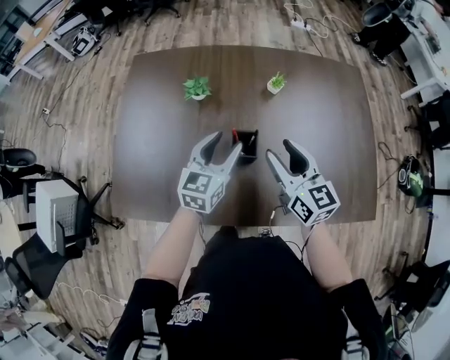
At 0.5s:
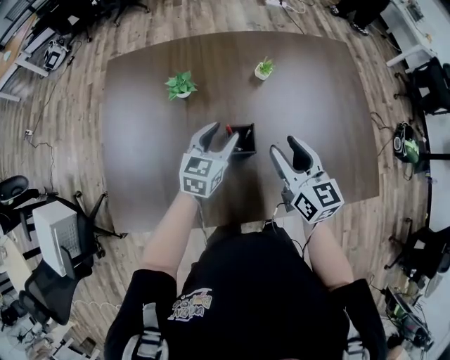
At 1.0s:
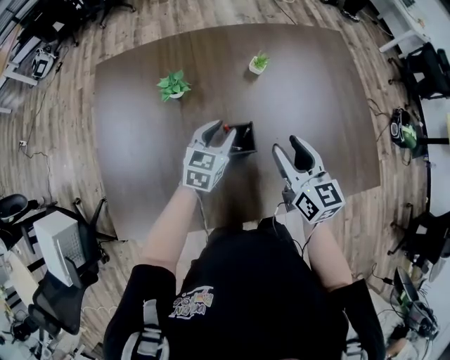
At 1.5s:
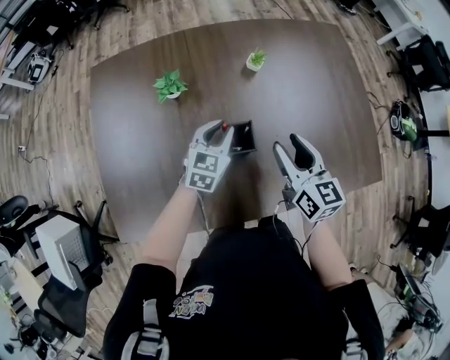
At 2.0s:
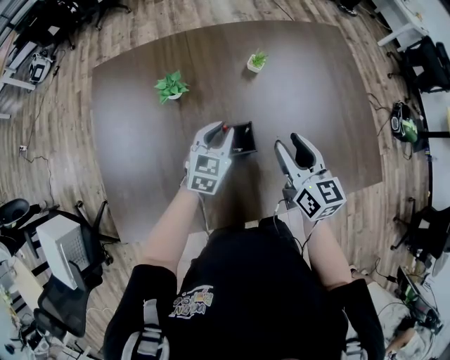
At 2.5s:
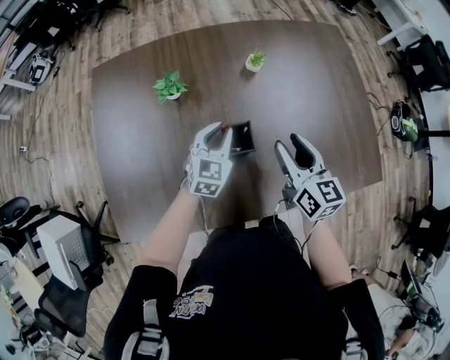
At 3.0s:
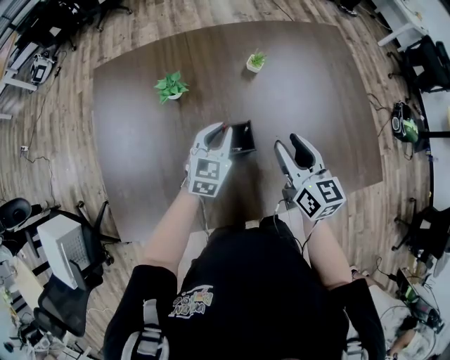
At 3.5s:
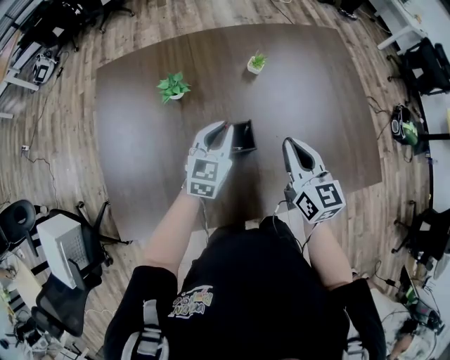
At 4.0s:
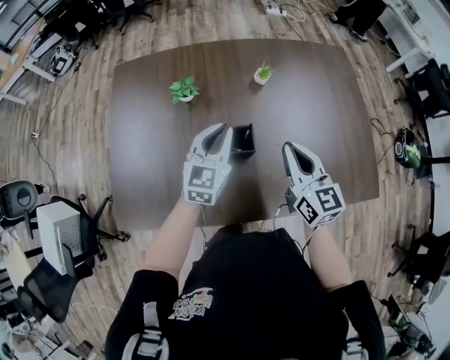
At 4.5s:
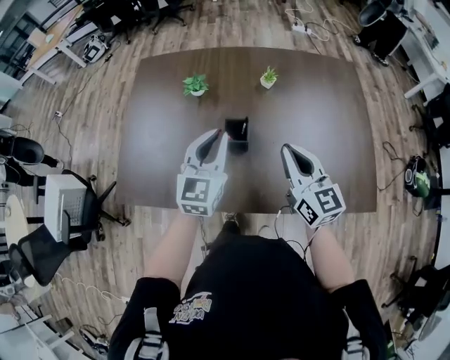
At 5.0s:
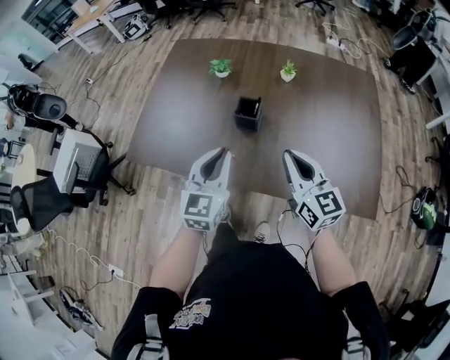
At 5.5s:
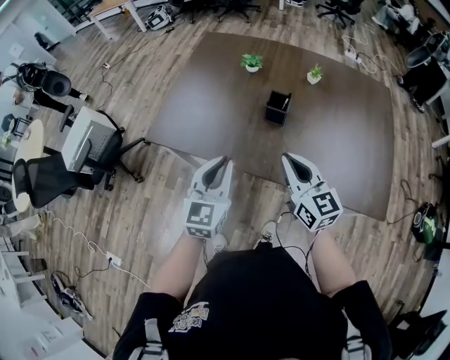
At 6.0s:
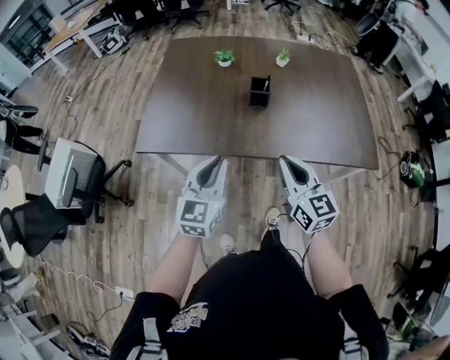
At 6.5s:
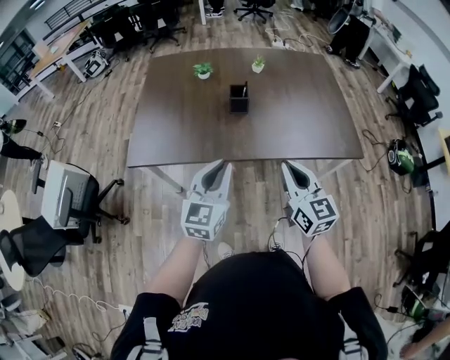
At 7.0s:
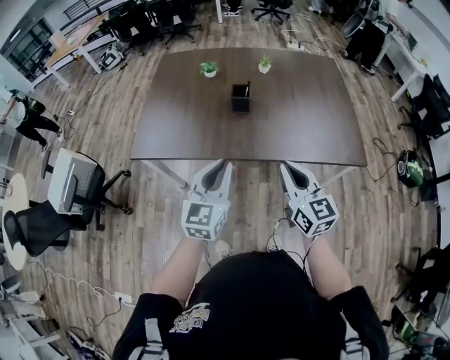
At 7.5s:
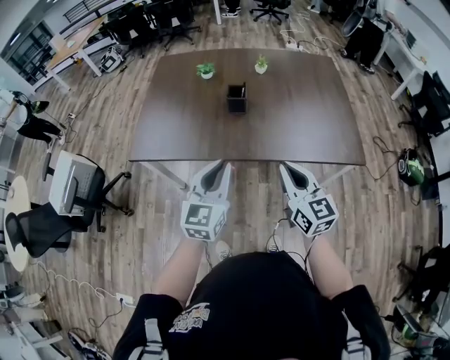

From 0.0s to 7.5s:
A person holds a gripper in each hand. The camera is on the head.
From 0.0s to 2.0s: The left gripper heads downward and forward, covering roughly 15 cm, swivels about 20 degrees, and closes, while the right gripper changes place by roughly 5 cm, and changes its angle by roughly 20 degrees.
From 2.0s to 4.0s: The right gripper shifts by about 5 cm, and closes. The left gripper heads upward, covering some 10 cm.
From 4.0s to 5.5s: The left gripper shifts by approximately 35 cm, and changes its angle by about 30 degrees. The right gripper moves roughly 25 cm, and turns by some 30 degrees.
From 5.5s to 7.5s: The right gripper goes some 15 cm backward; the left gripper travels backward and to the right by approximately 15 cm.

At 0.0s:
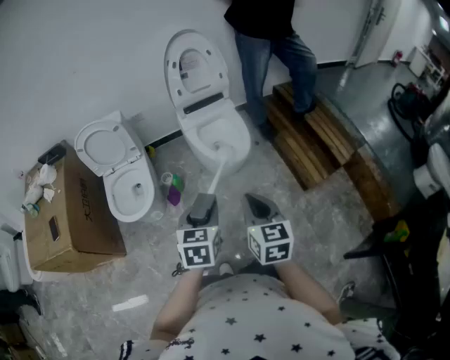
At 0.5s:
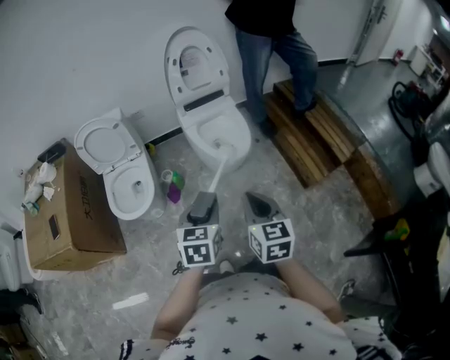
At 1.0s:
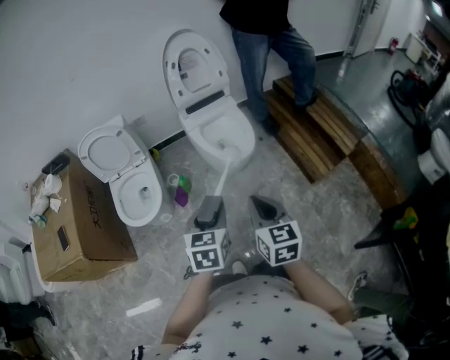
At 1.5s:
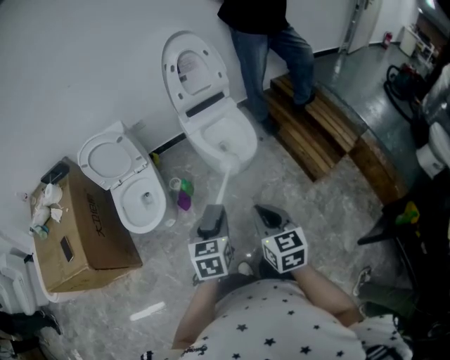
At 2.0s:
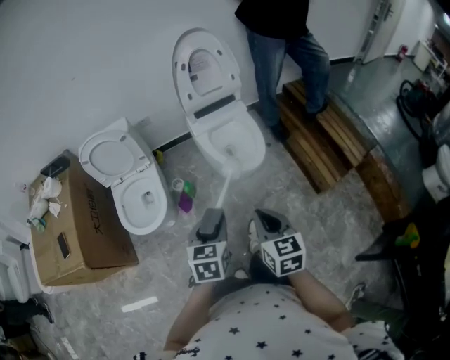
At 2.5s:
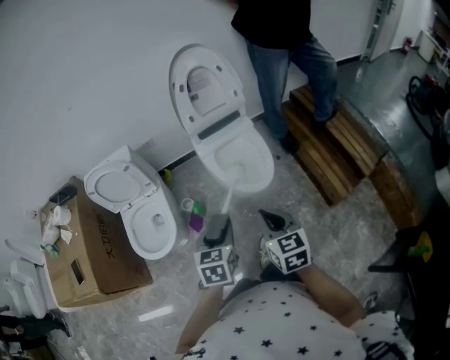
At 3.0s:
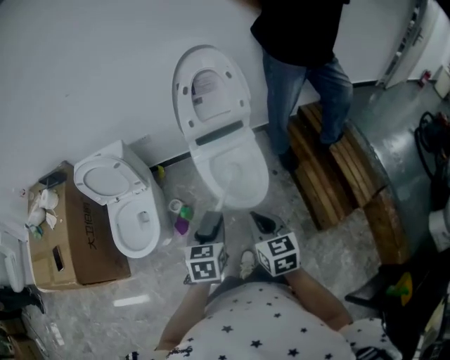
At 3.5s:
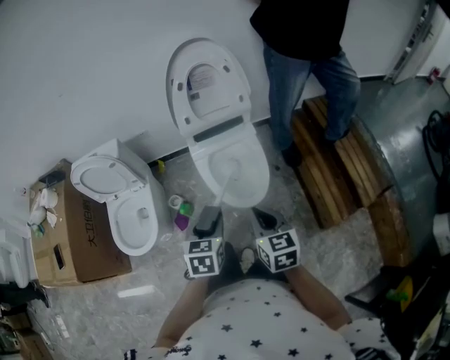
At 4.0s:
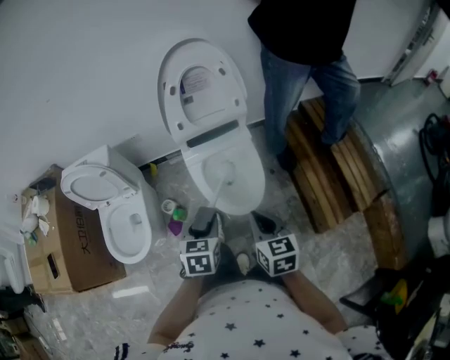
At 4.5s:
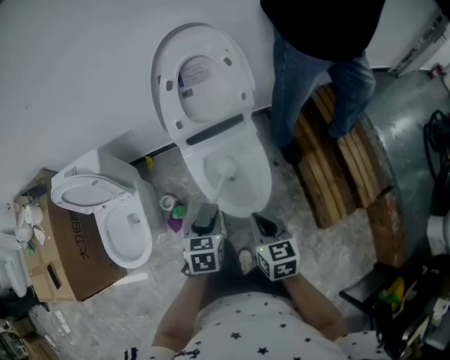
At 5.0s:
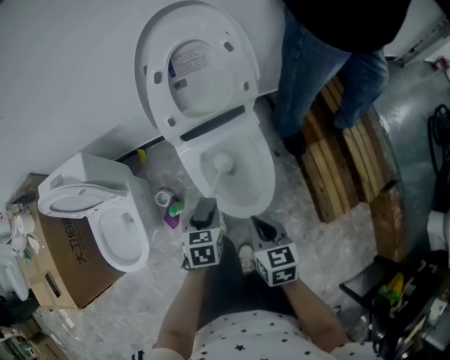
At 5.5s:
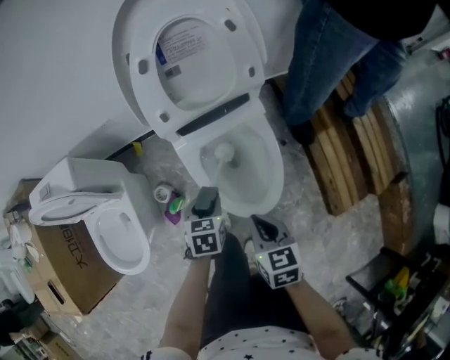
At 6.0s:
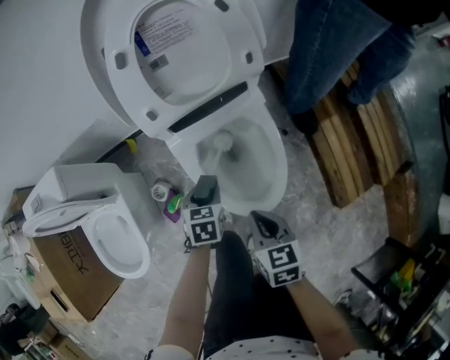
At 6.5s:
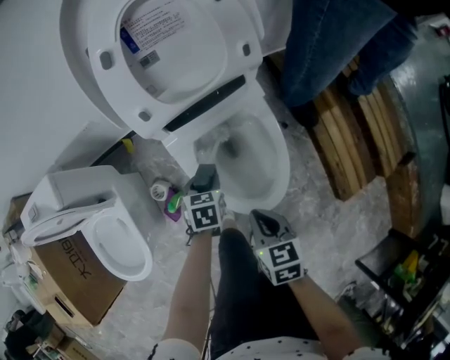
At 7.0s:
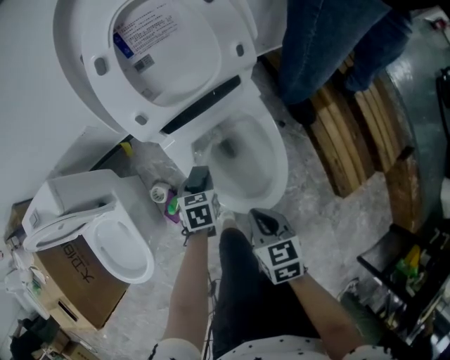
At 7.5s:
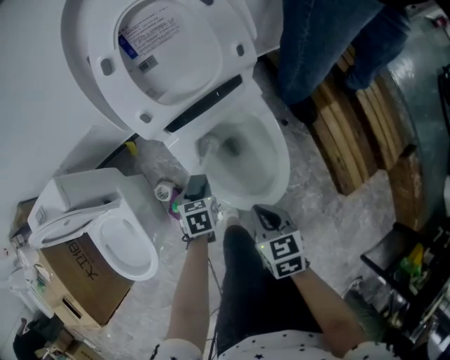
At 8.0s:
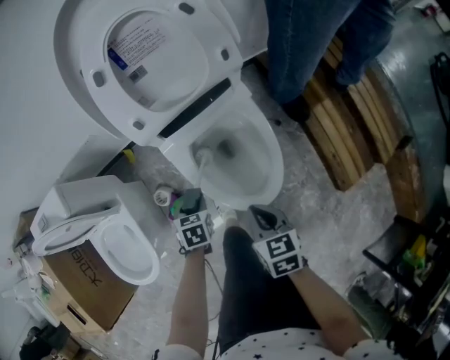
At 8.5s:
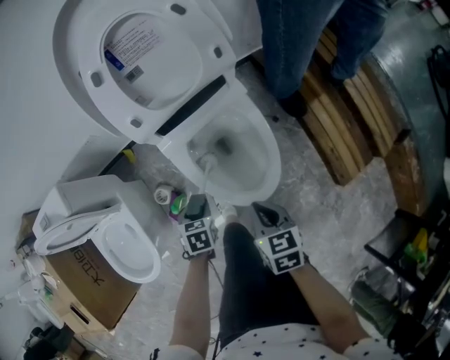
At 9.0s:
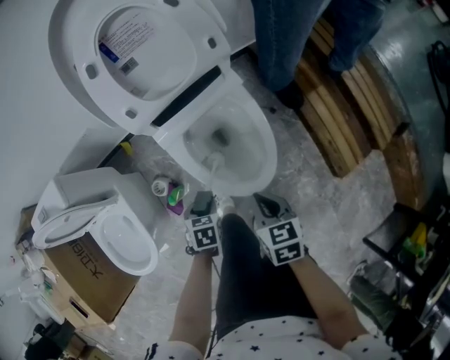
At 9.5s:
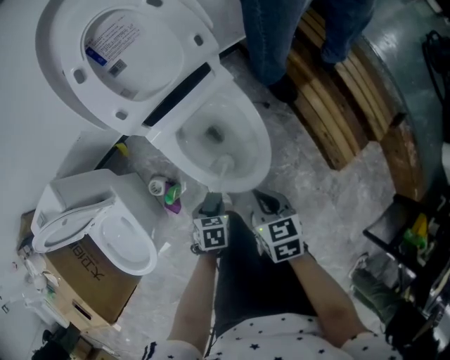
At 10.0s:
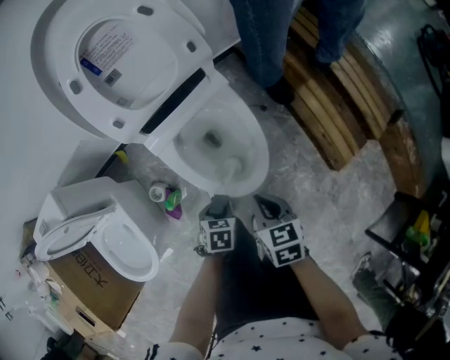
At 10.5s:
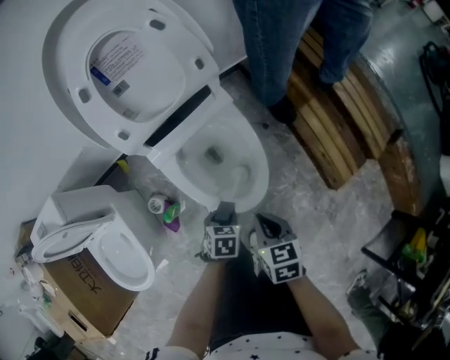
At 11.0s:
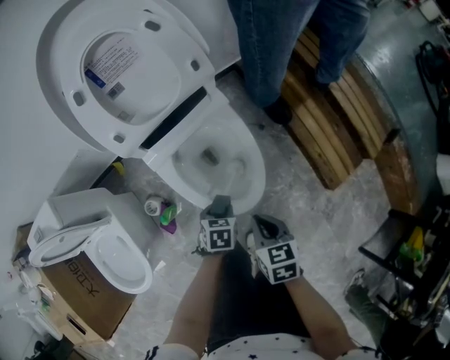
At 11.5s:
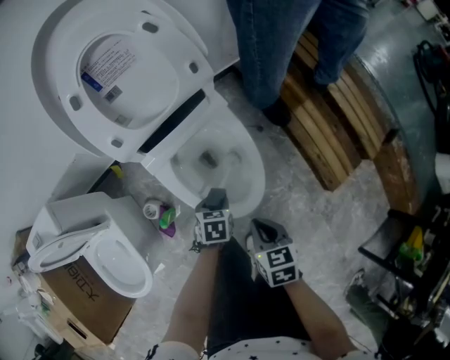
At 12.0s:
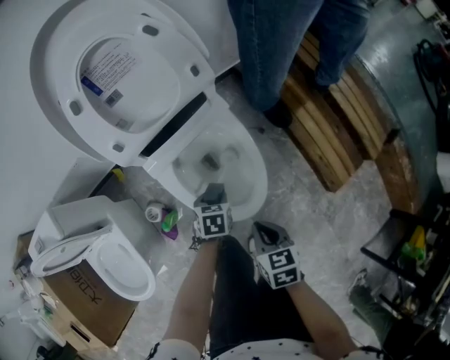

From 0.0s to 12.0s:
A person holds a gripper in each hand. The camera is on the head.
From 0.0s to 2.0s: The right gripper ends up some 5 cm from where it was, while the left gripper is displaced to the left and forward by roughly 5 cm.
From 2.0s to 4.0s: The left gripper is displaced forward by approximately 30 cm. The right gripper heads forward and to the right, covering roughly 30 cm.
From 4.0s to 6.0s: Both grippers move downward and forward, approximately 30 cm.
From 6.0s to 8.0s: The left gripper shifts some 5 cm to the left.
From 8.0s to 10.0s: The right gripper moves to the right, approximately 5 cm; the left gripper shifts roughly 15 cm to the right and backward.
From 10.0s to 12.0s: The left gripper moves forward, about 10 cm.

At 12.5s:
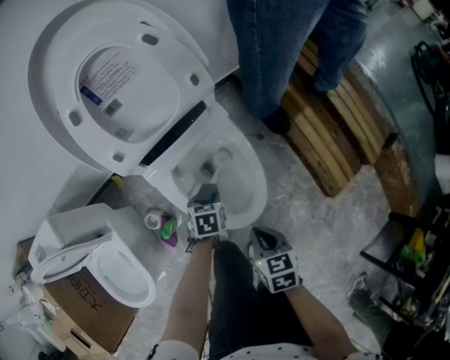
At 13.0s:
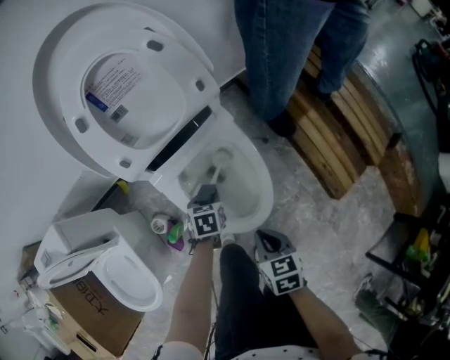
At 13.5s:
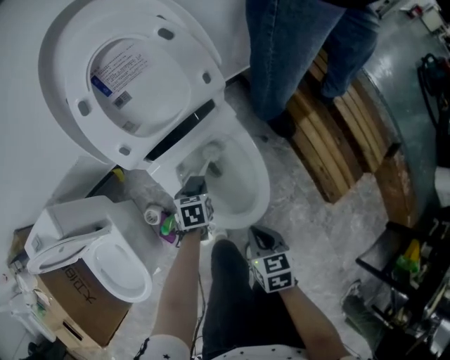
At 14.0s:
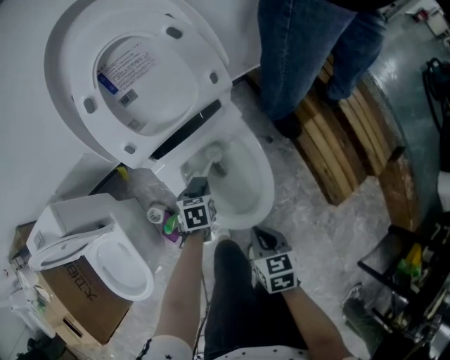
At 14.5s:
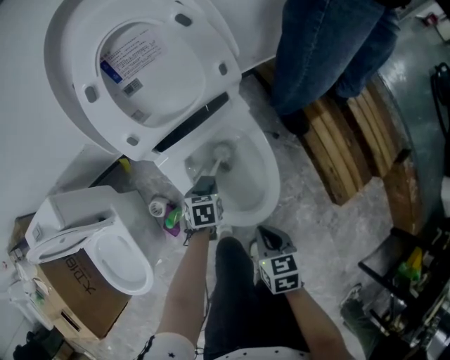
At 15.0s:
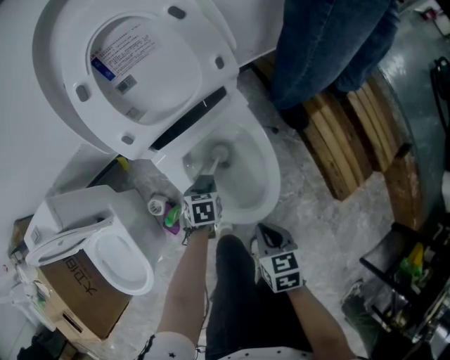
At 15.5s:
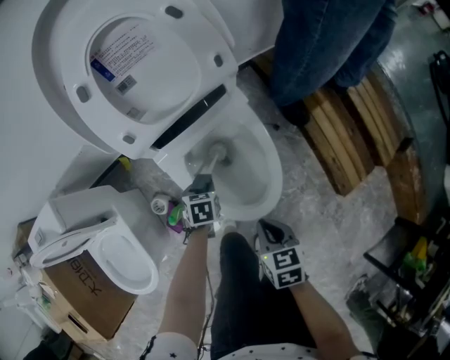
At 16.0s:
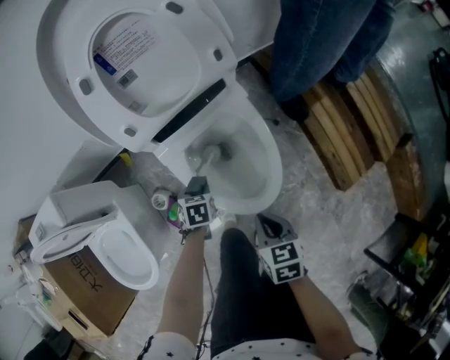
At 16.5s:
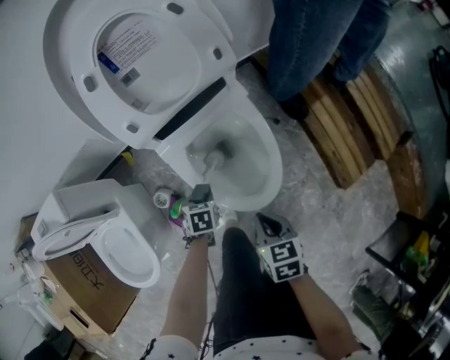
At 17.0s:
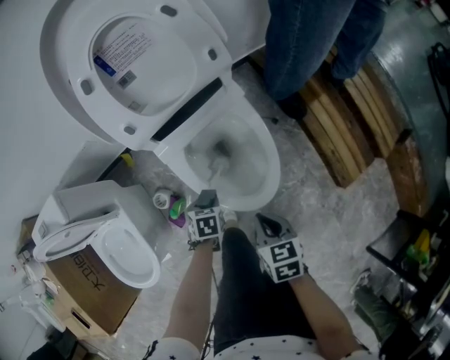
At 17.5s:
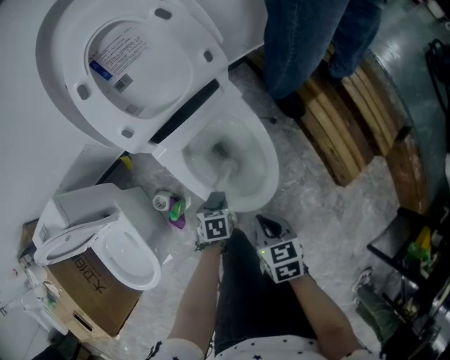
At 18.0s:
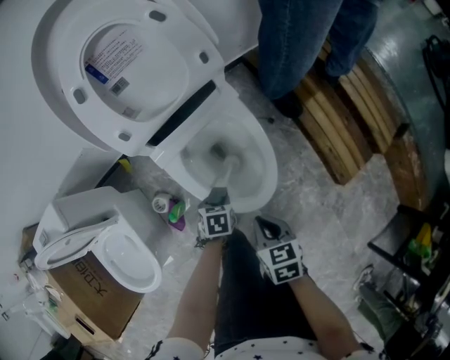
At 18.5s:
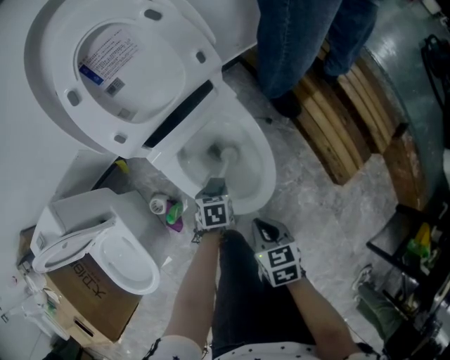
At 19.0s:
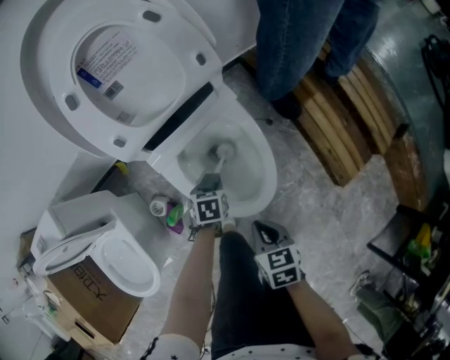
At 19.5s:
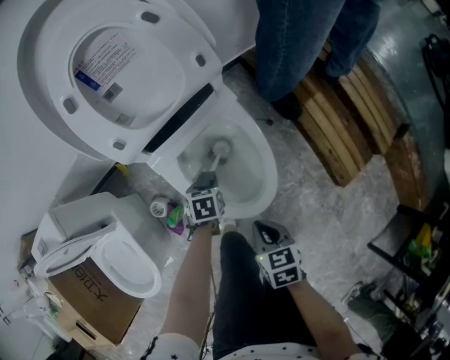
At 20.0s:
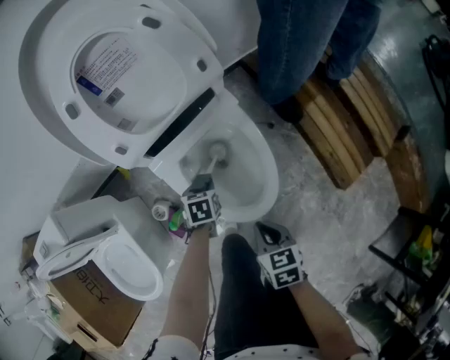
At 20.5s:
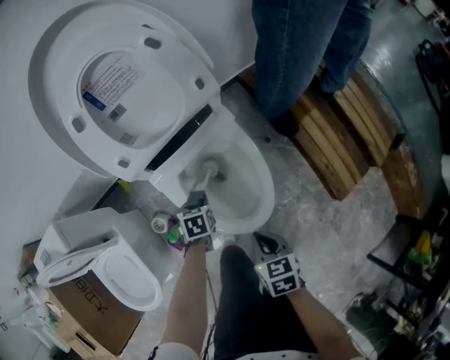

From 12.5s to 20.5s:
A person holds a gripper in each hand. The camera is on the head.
From 12.5s to 14.5s: The left gripper shifts roughly 5 cm to the left.
From 14.5s to 16.5s: The left gripper shifts some 5 cm backward.
From 16.5s to 18.5s: The left gripper travels to the right by some 10 cm.
From 18.5s to 20.5s: The left gripper moves to the left, about 5 cm.
